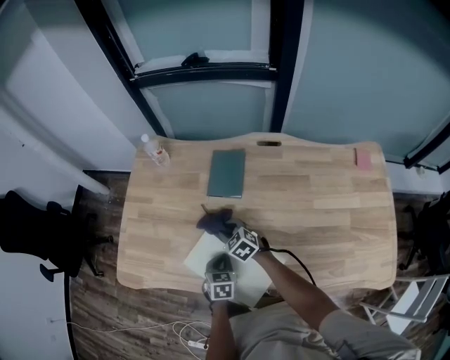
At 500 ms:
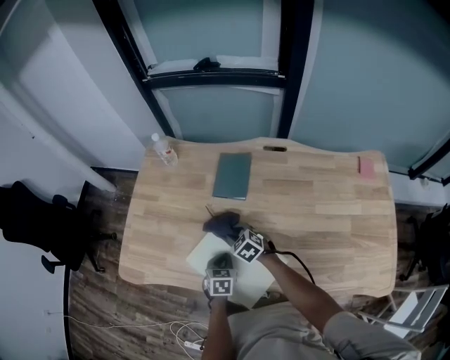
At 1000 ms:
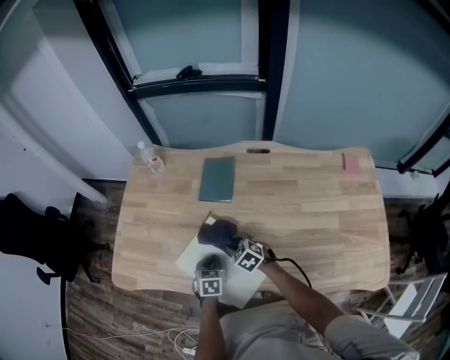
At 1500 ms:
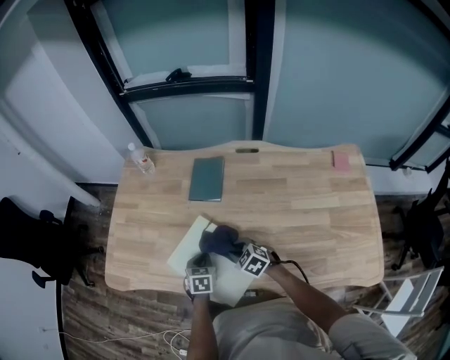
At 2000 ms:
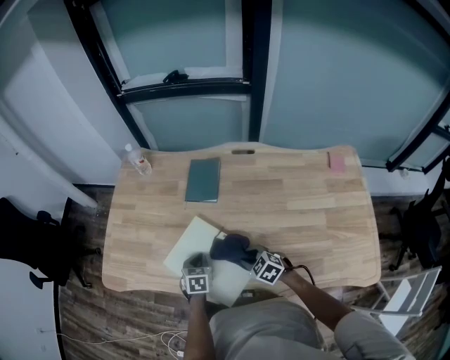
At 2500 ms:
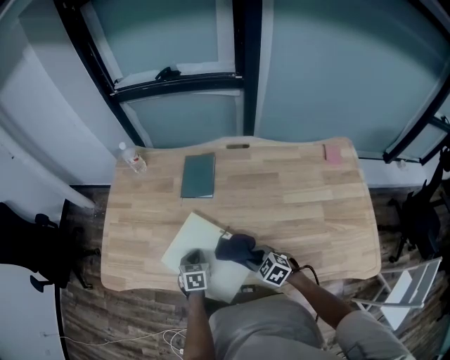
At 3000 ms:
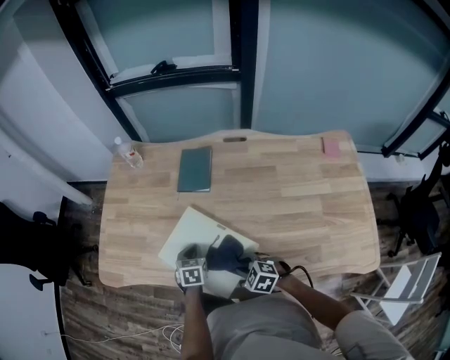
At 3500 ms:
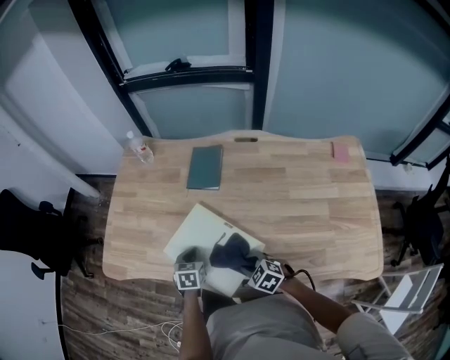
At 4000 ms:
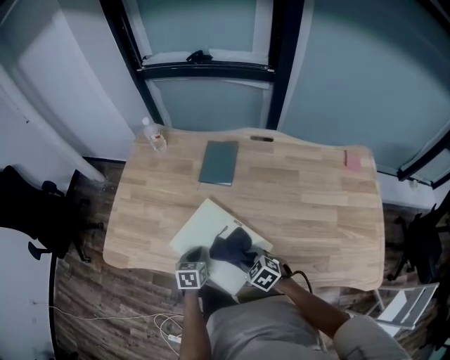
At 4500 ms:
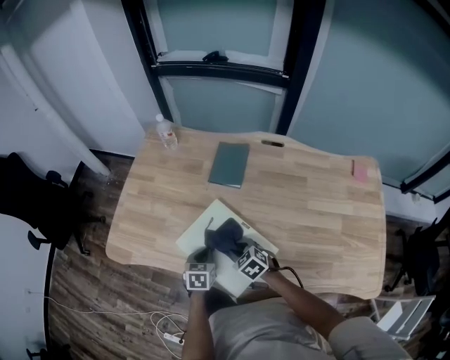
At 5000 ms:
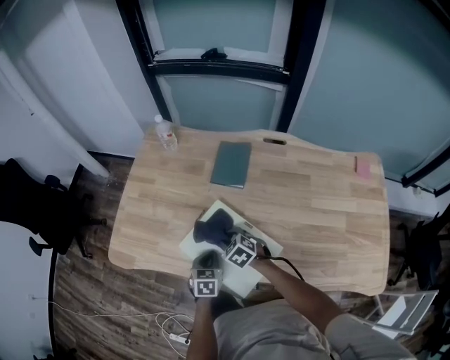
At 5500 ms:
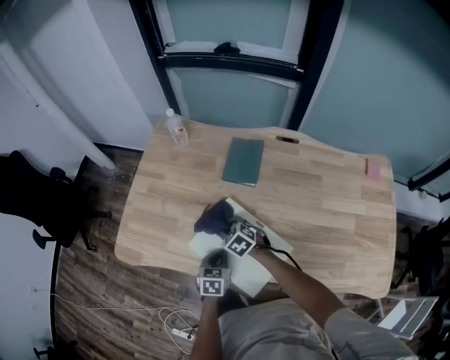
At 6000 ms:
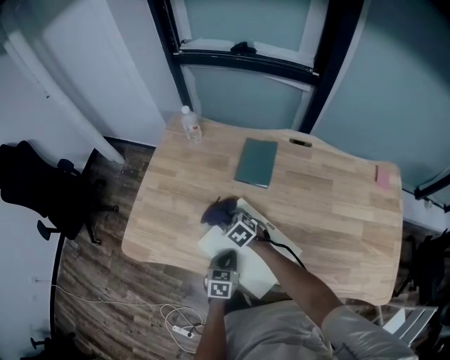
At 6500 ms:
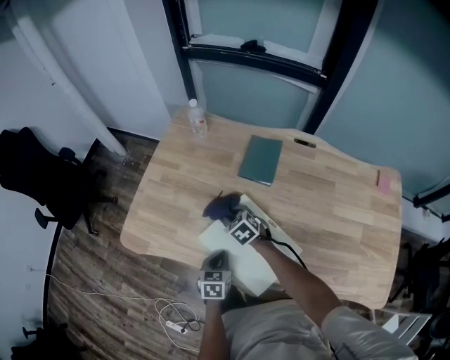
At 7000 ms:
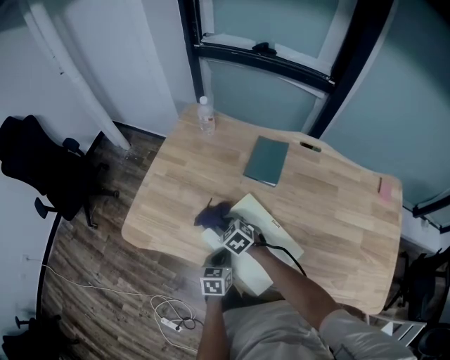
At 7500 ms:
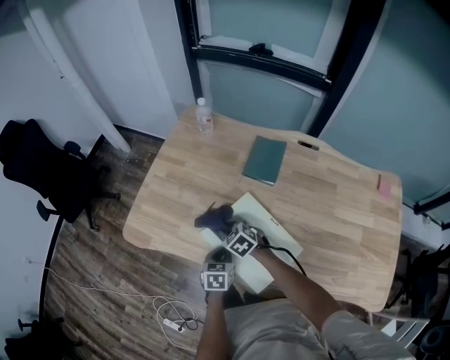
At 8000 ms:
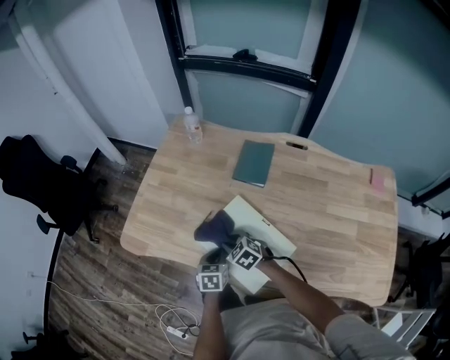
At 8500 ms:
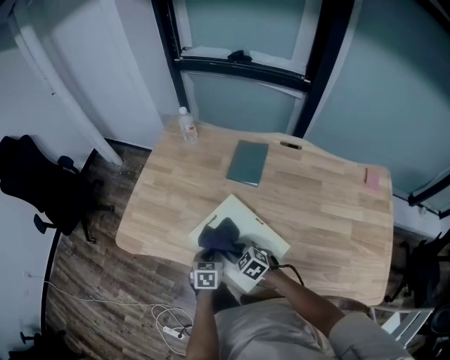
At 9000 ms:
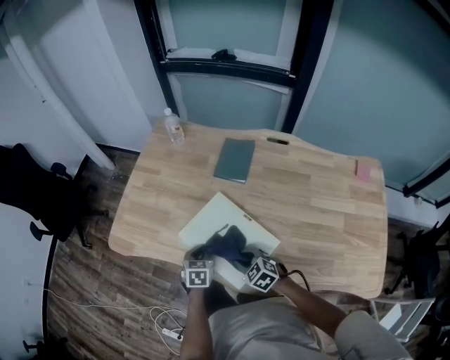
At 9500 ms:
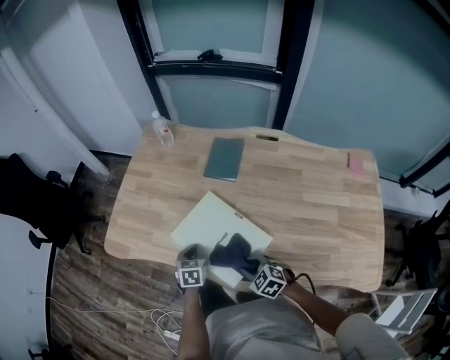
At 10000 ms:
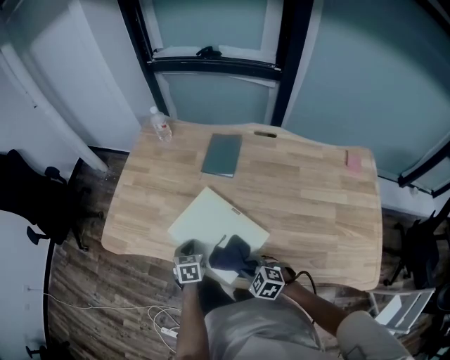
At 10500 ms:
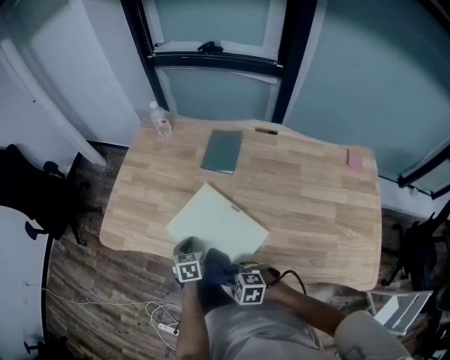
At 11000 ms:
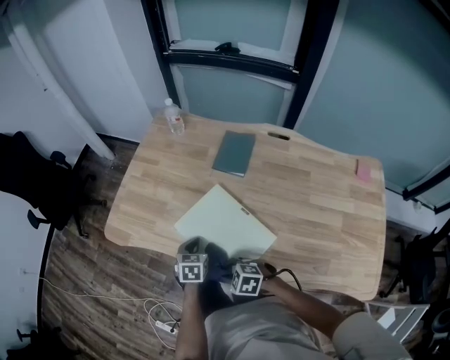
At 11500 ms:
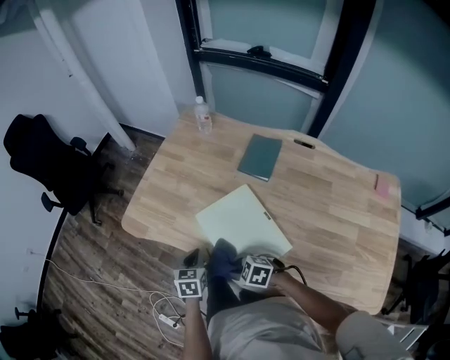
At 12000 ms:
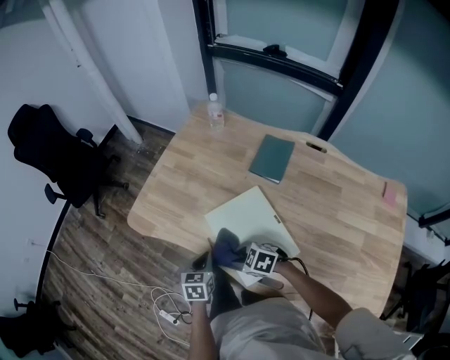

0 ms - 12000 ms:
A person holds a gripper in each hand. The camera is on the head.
0 ms - 2000 ms: The right gripper shifts approximately 20 cm backward and to the right.
2000 ms - 4000 ms: The right gripper goes some 5 cm to the left, while the left gripper changes place by approximately 5 cm.
4000 ms - 6000 ms: The right gripper heads forward and to the left, covering some 25 cm.
6000 ms - 8000 ms: The right gripper goes about 10 cm backward.
8000 ms - 10000 ms: The right gripper travels backward and to the right by about 20 cm.
10000 ms - 12000 ms: The right gripper goes approximately 15 cm forward and to the left, and swivels about 30 degrees. Meanwhile the left gripper is displaced to the left by some 10 cm.

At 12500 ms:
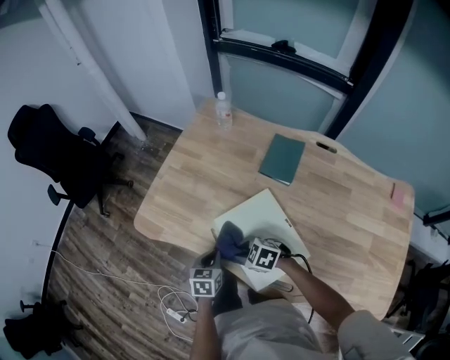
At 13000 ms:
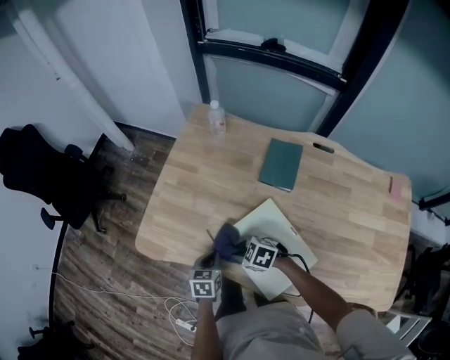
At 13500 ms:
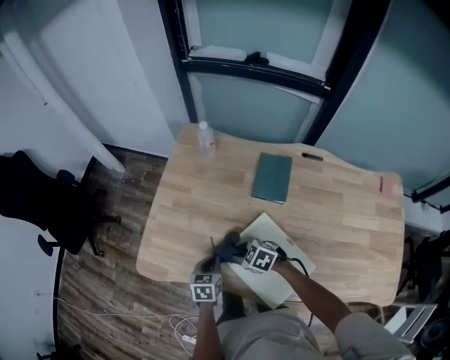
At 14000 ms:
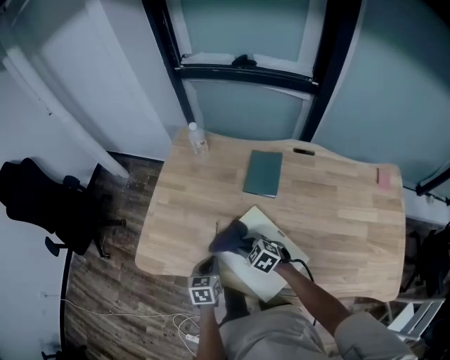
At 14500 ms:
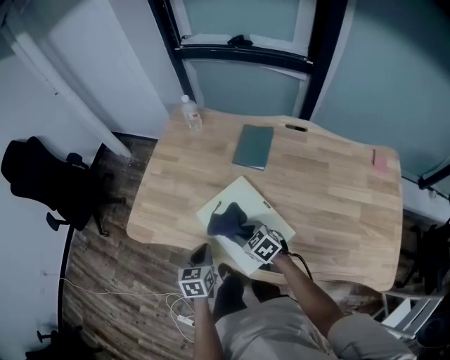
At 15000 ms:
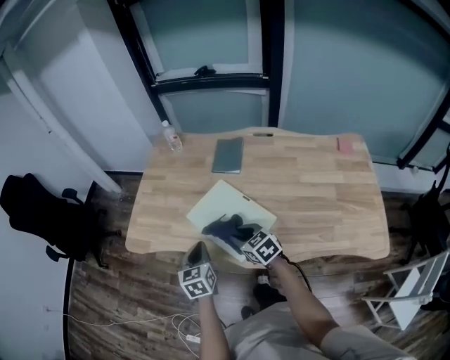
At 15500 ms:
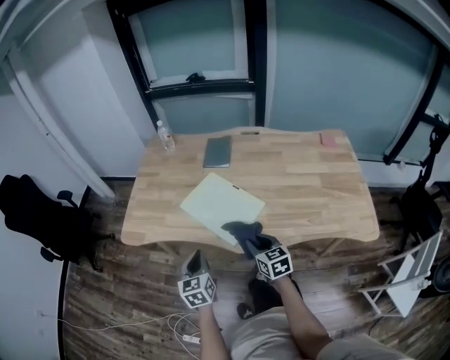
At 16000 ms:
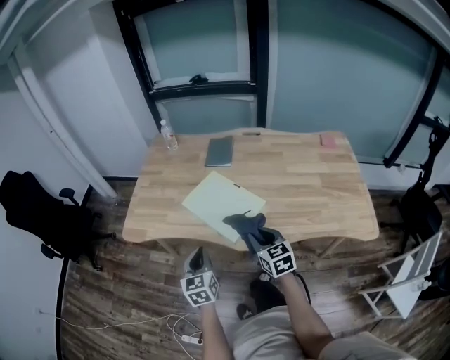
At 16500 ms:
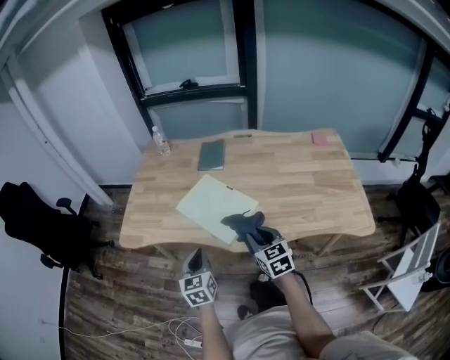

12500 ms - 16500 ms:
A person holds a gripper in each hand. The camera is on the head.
12500 ms - 14500 ms: The right gripper is displaced to the right by some 10 cm, goes forward and returns, about 10 cm each way, and turns by roughly 30 degrees; the left gripper is displaced upward by some 5 cm, and reaches approximately 10 cm forward, then returns.
14500 ms - 16500 ms: The two grippers go some 25 cm backward and upward. The right gripper swivels approximately 40 degrees.

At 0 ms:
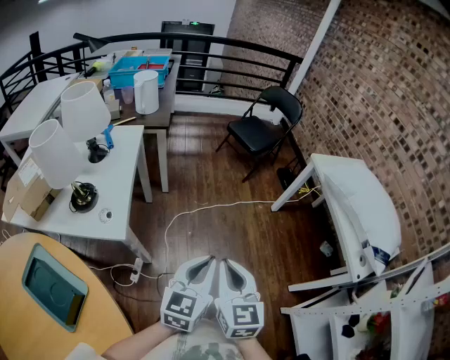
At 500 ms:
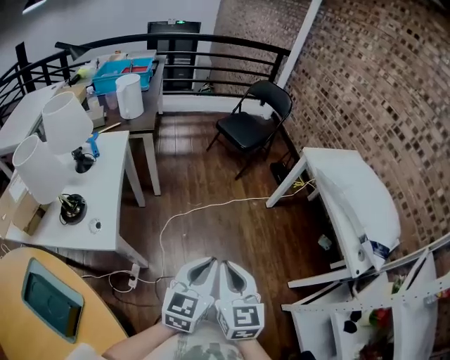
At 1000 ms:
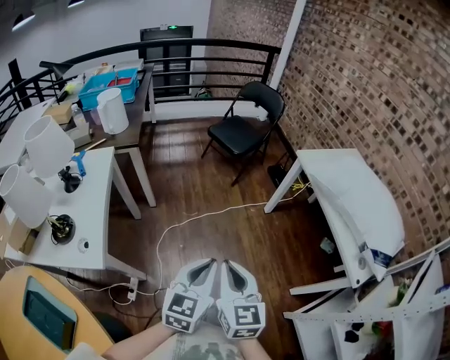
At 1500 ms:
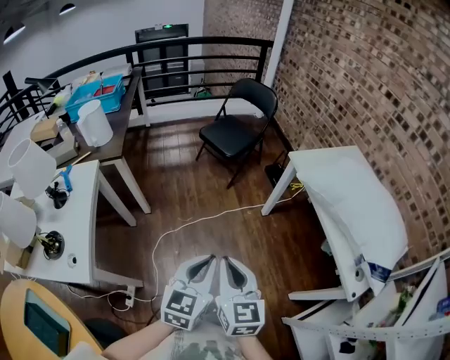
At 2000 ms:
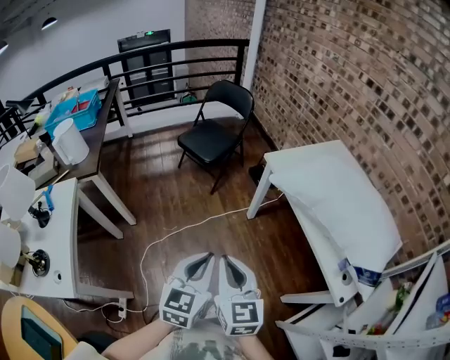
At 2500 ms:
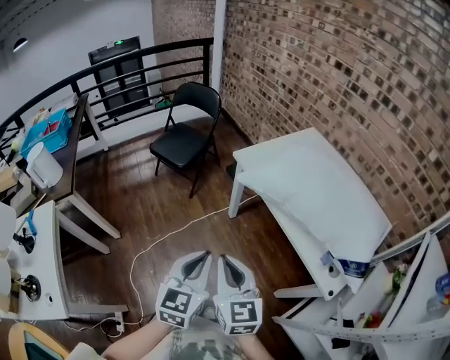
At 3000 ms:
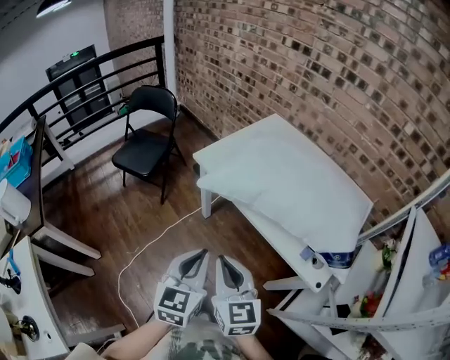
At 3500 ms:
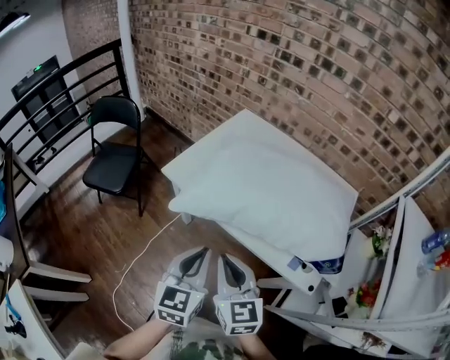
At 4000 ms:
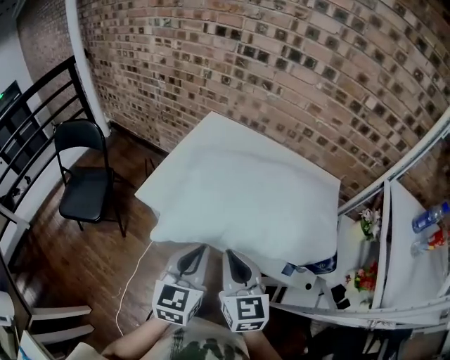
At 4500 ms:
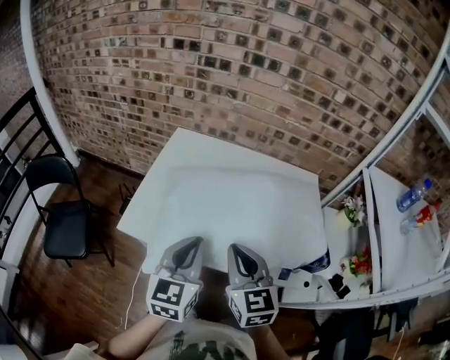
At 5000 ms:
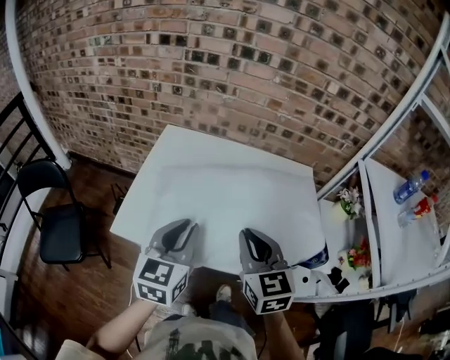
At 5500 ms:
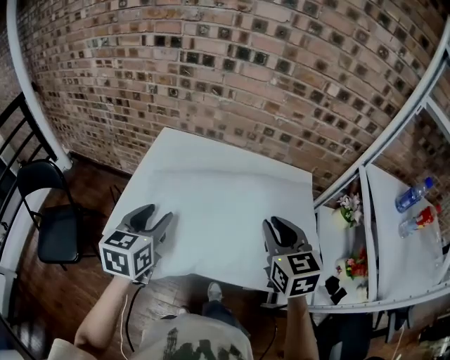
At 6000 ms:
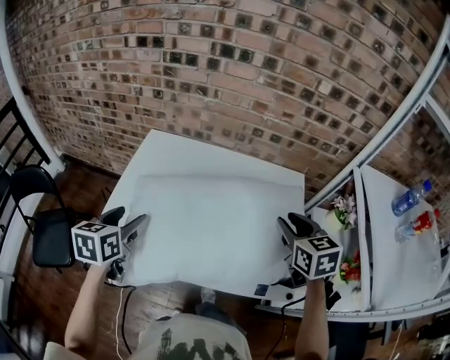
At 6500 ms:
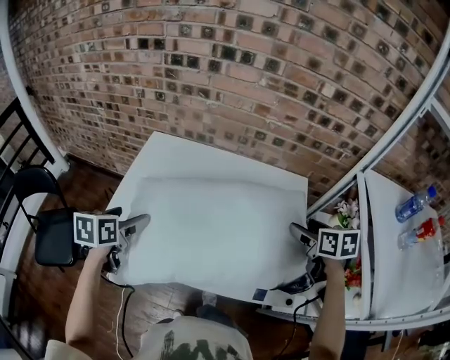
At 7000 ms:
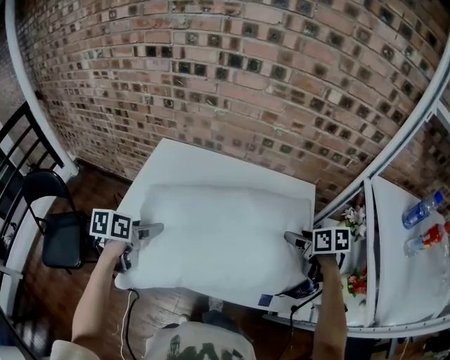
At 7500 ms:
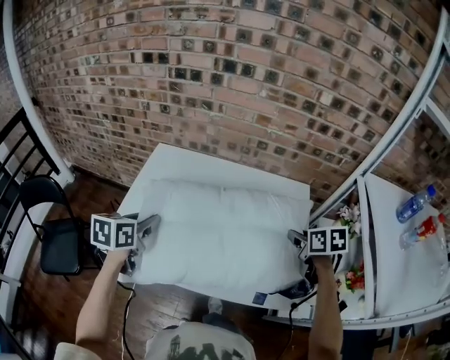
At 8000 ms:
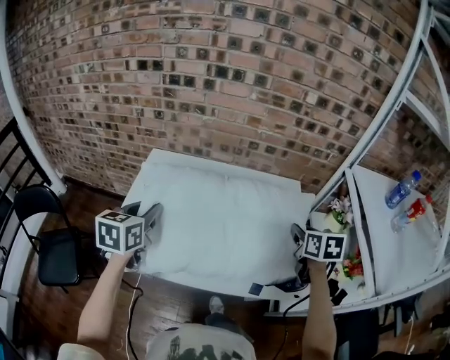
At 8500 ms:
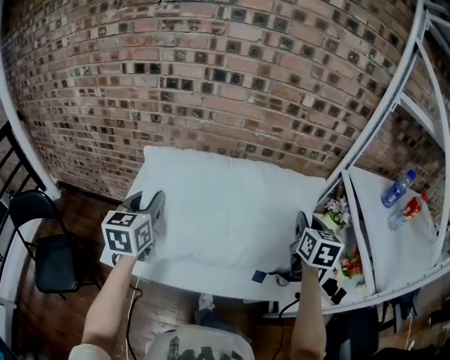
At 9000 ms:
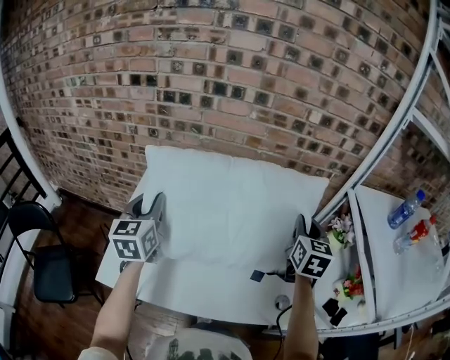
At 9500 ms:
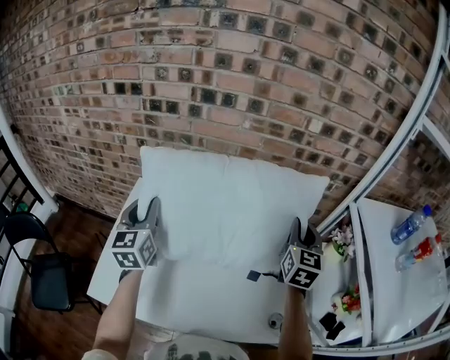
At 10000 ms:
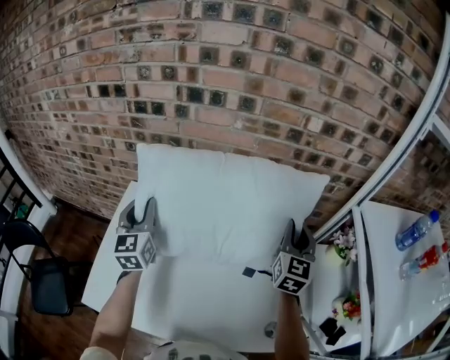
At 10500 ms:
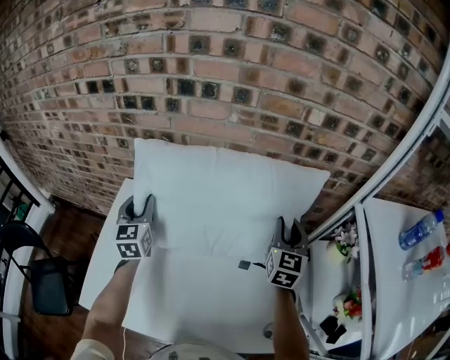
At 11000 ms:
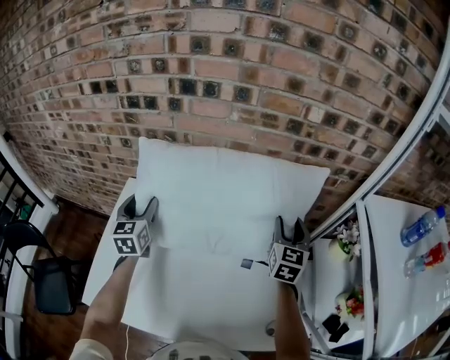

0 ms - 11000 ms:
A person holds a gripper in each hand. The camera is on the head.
0 ms - 2000 ms: Both grippers travel together to the right and forward, approximately 35 cm.
2000 ms - 3500 ms: The right gripper shifts by roughly 25 cm, and changes its angle by about 30 degrees. Meanwhile the left gripper changes place by roughly 25 cm, and swivels approximately 30 degrees.
3500 ms - 5500 ms: The left gripper changes place by roughly 25 cm, changes its angle by about 20 degrees, and opens up. The right gripper moves approximately 30 cm, and swivels about 30 degrees.
5500 ms - 7500 ms: The right gripper goes approximately 20 cm to the right, downward and forward, swivels roughly 40 degrees, and opens, then closes once more. The left gripper goes some 5 cm forward, and opens, then closes again.
7500 ms - 9000 ms: The left gripper is displaced forward and upward by approximately 15 cm, and changes its angle by some 30 degrees, while the right gripper moves upward and forward, about 15 cm, and angles its fingers upward, by some 30 degrees.
9000 ms - 11000 ms: The grippers both shift forward and downward by approximately 15 cm. The right gripper opens up.
